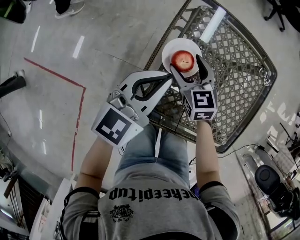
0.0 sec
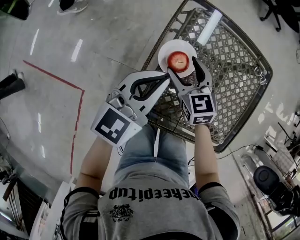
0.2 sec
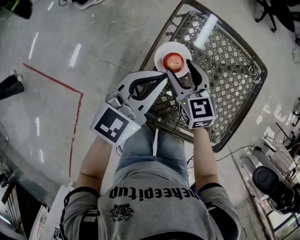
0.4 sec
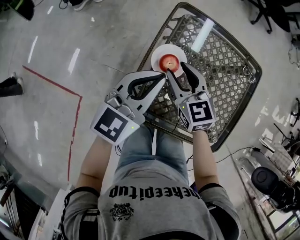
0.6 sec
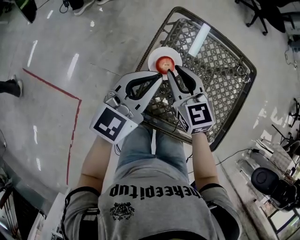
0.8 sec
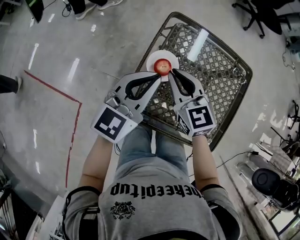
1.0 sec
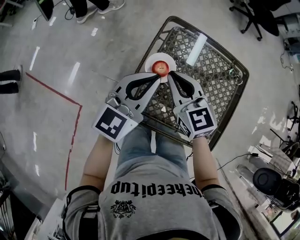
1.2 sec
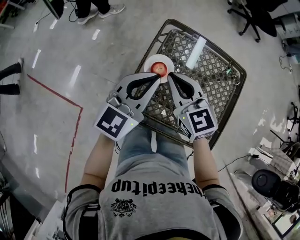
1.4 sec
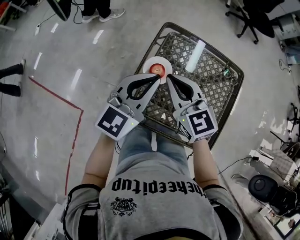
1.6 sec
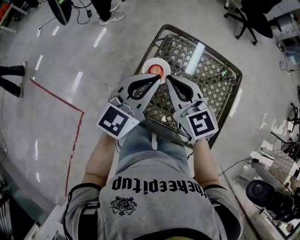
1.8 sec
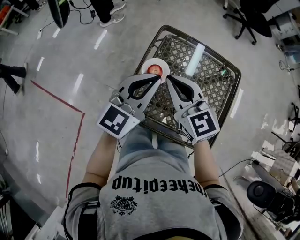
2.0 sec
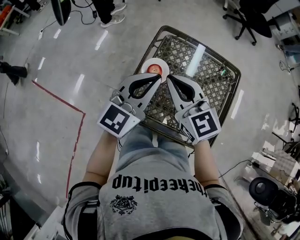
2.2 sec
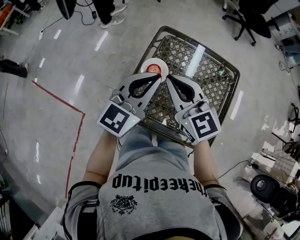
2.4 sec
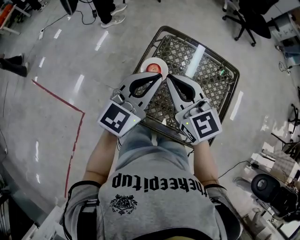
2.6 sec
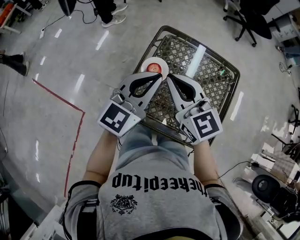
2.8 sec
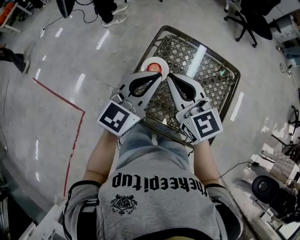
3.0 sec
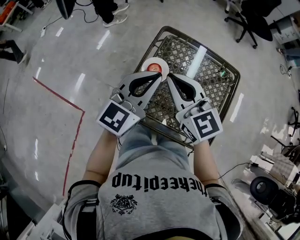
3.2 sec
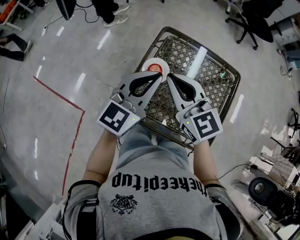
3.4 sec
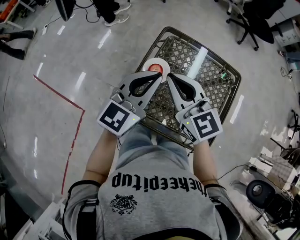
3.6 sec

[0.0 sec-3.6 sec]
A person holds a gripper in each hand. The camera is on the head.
0.0 sec to 1.8 sec: The left gripper heads upward and to the right, covering approximately 20 cm. The right gripper is displaced upward by roughly 25 cm, turns by approximately 20 degrees, and closes up.
1.8 sec to 3.6 sec: The grippers move only a little.

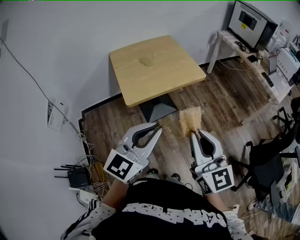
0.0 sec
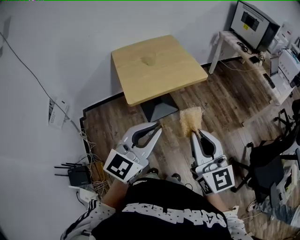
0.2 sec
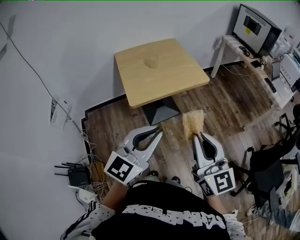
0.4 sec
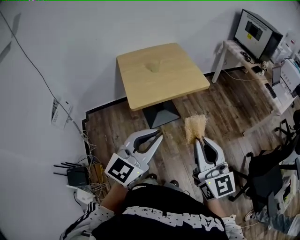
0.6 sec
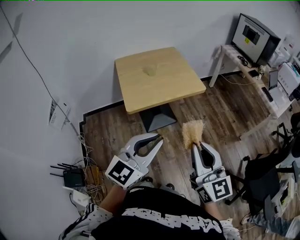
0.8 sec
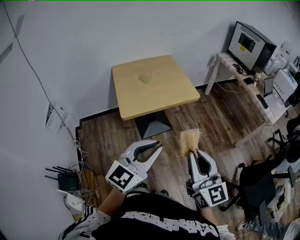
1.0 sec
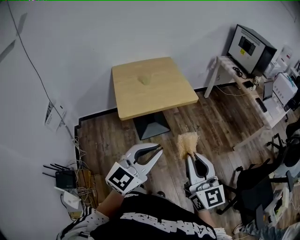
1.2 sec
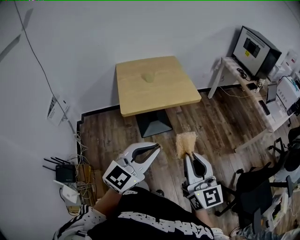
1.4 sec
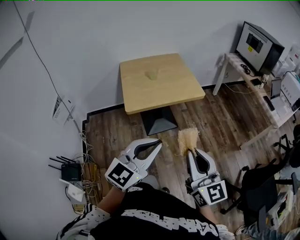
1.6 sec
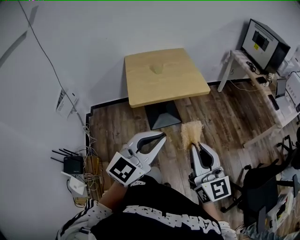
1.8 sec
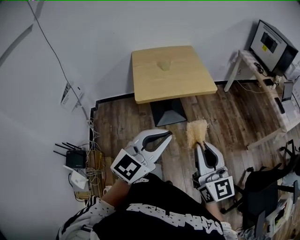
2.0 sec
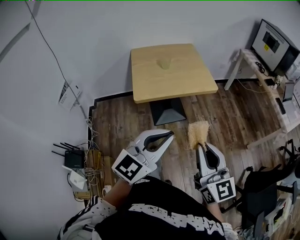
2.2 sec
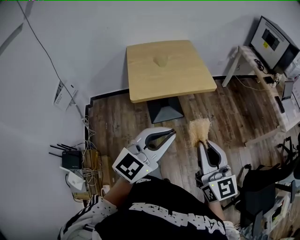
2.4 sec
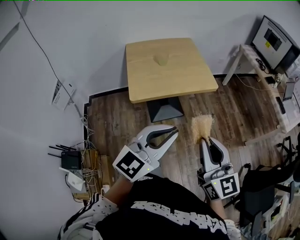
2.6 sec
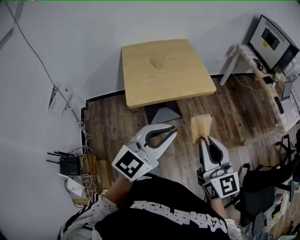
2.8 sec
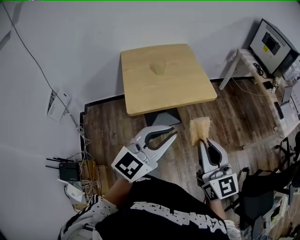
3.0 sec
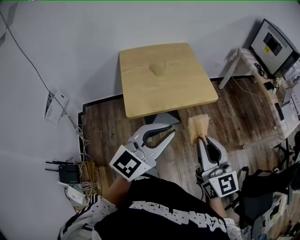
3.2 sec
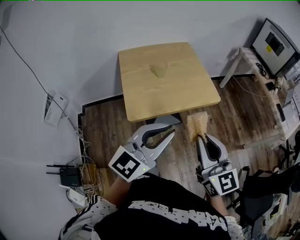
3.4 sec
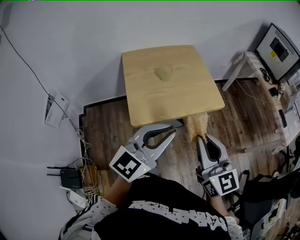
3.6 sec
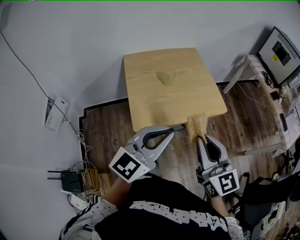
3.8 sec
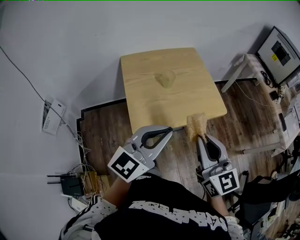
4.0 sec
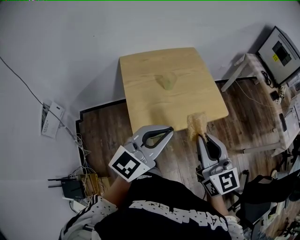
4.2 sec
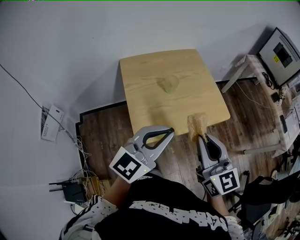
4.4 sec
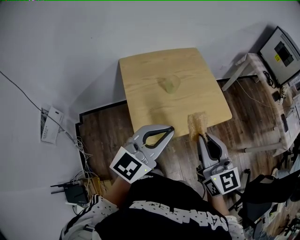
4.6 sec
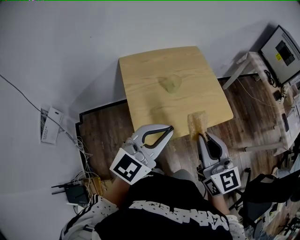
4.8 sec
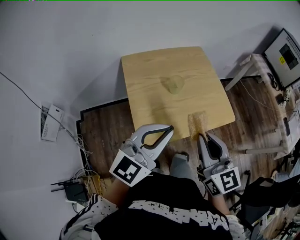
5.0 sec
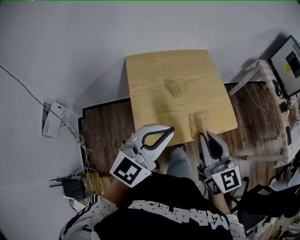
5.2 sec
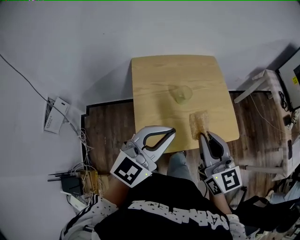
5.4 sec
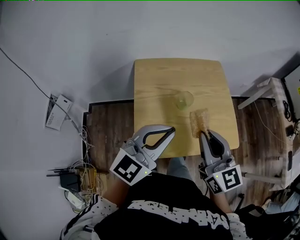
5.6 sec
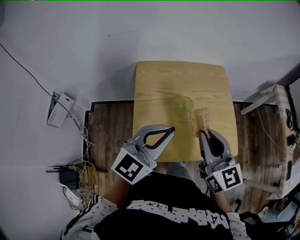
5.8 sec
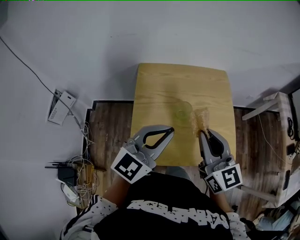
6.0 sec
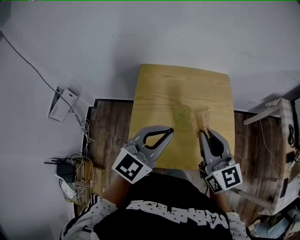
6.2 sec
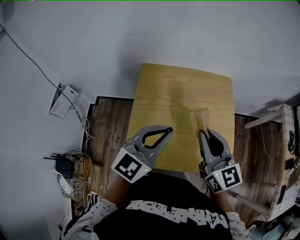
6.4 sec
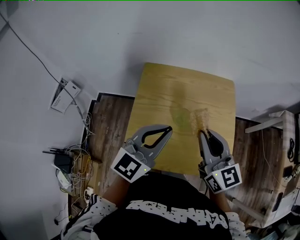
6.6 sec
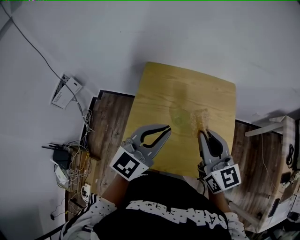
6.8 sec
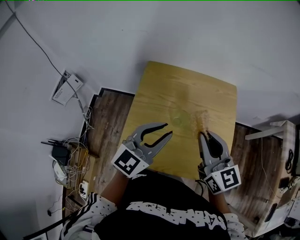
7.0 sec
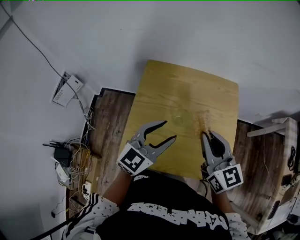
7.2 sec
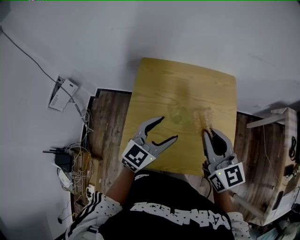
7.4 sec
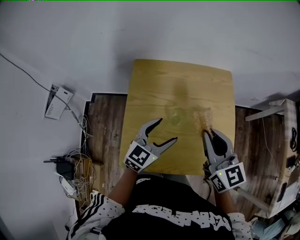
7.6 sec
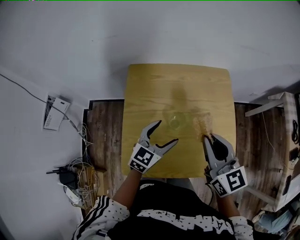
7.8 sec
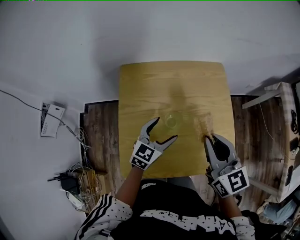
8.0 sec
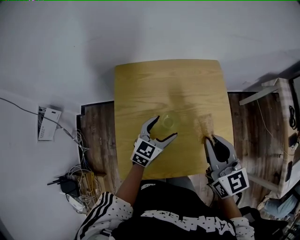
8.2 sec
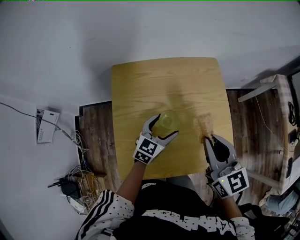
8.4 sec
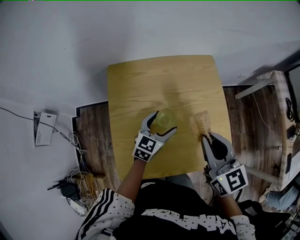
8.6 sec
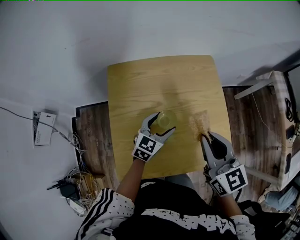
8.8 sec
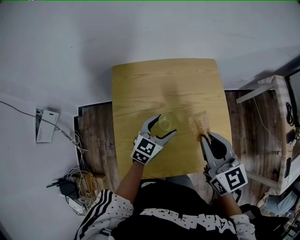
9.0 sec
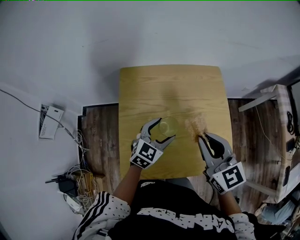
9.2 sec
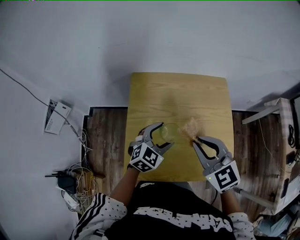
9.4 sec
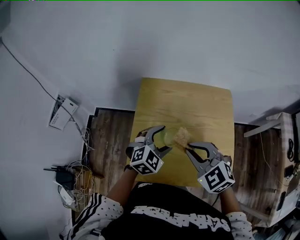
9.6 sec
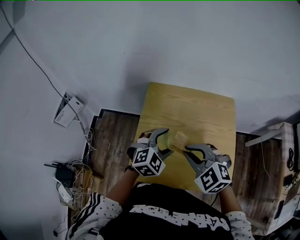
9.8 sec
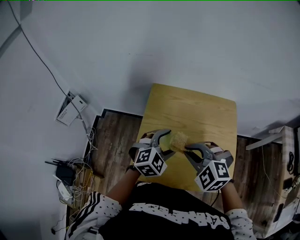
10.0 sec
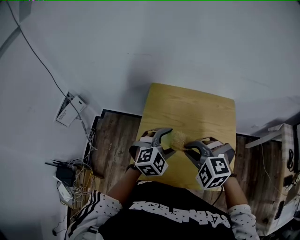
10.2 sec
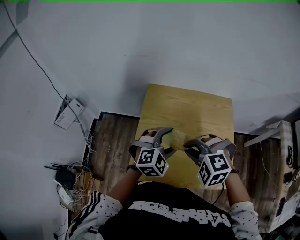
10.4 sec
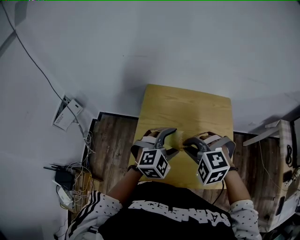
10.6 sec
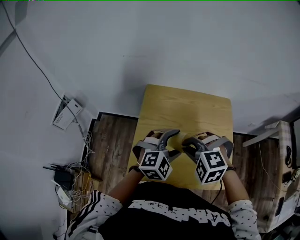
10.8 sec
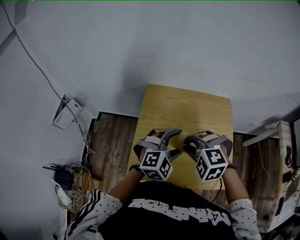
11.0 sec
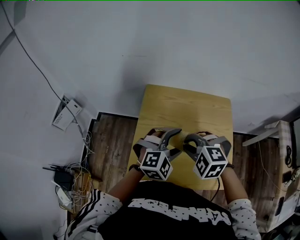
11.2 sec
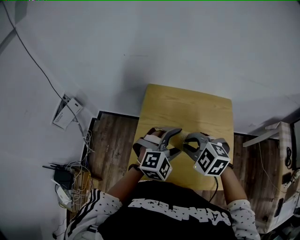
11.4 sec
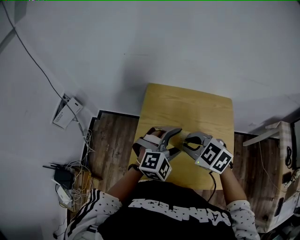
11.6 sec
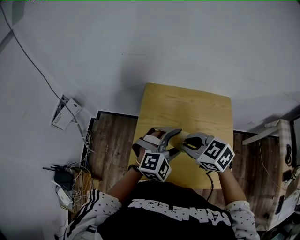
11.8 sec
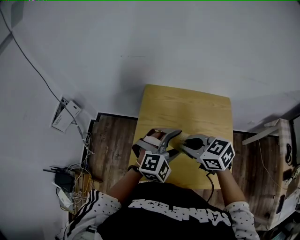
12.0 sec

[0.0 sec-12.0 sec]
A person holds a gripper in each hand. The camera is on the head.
0.0 sec to 1.6 sec: The two grippers go roughly 5 cm to the right.
1.6 sec to 3.0 sec: The two grippers go some 15 cm forward.
3.0 sec to 4.4 sec: Both grippers travel together forward and to the left, roughly 20 cm.
4.4 sec to 6.0 sec: The two grippers go some 20 cm forward.
6.0 sec to 7.6 sec: The right gripper moves forward, some 5 cm. The left gripper shifts some 15 cm downward and forward, and opens up.
7.6 sec to 9.0 sec: The left gripper goes roughly 10 cm downward.
9.0 sec to 10.4 sec: The right gripper moves to the left, some 10 cm, and twists roughly 70 degrees counterclockwise, seen from behind. The left gripper shifts some 10 cm upward and to the left, and swivels some 40 degrees.
10.4 sec to 12.0 sec: The right gripper rotates around the line of its fingers by some 60 degrees, clockwise from behind.

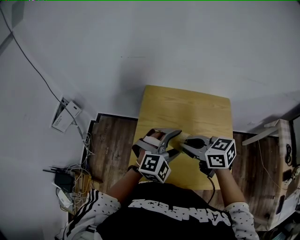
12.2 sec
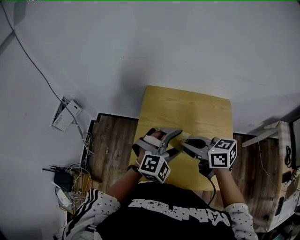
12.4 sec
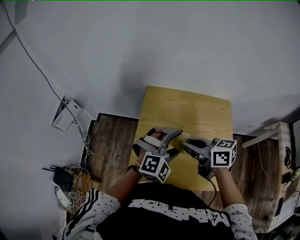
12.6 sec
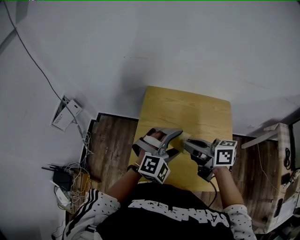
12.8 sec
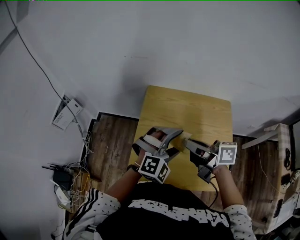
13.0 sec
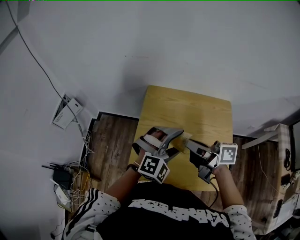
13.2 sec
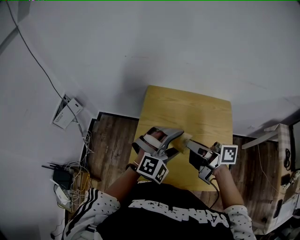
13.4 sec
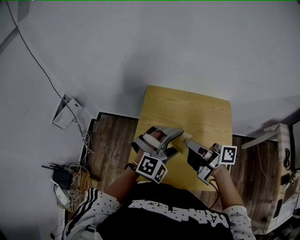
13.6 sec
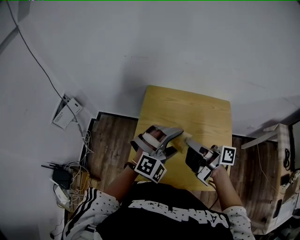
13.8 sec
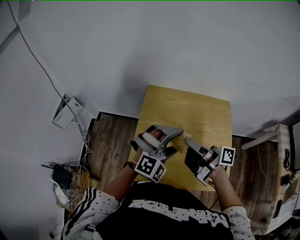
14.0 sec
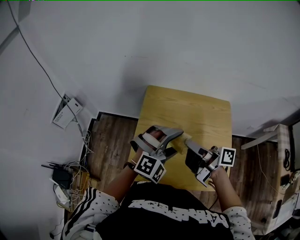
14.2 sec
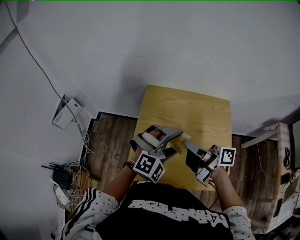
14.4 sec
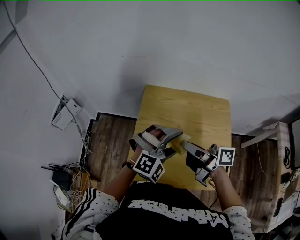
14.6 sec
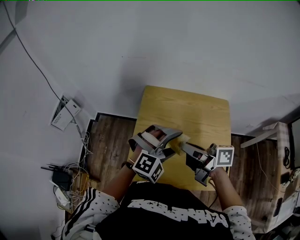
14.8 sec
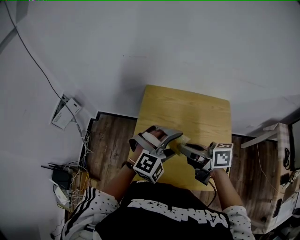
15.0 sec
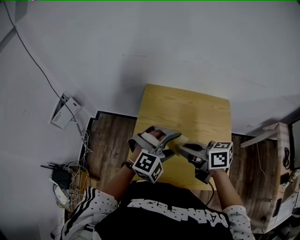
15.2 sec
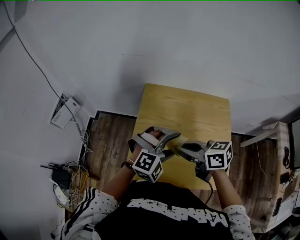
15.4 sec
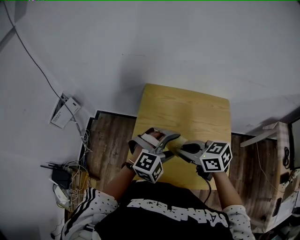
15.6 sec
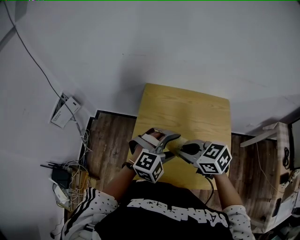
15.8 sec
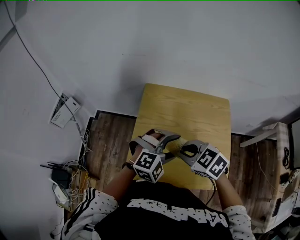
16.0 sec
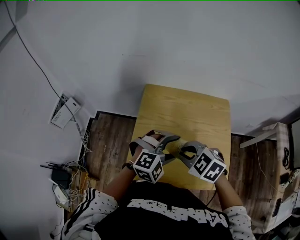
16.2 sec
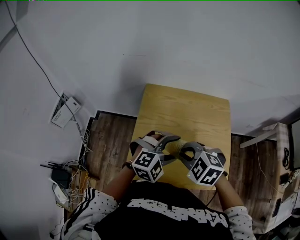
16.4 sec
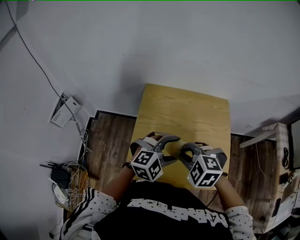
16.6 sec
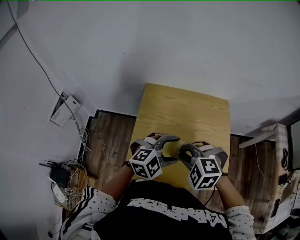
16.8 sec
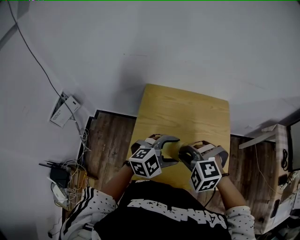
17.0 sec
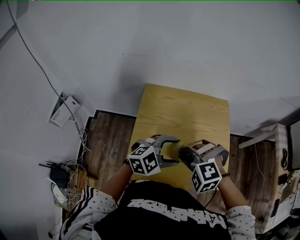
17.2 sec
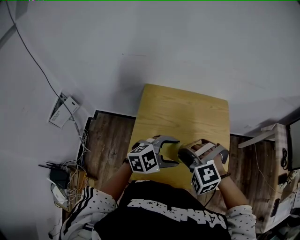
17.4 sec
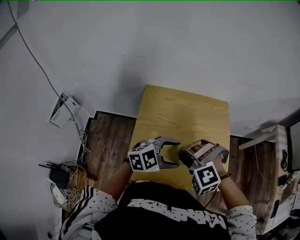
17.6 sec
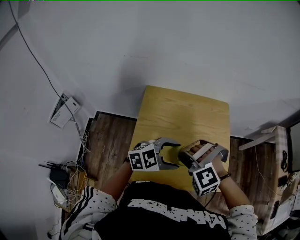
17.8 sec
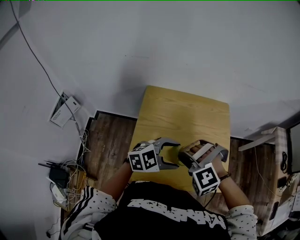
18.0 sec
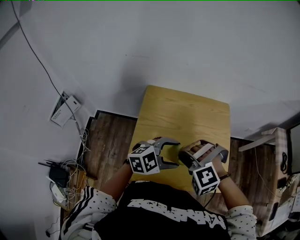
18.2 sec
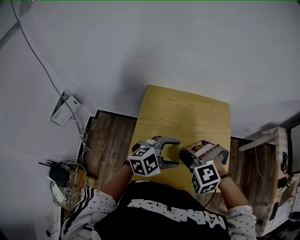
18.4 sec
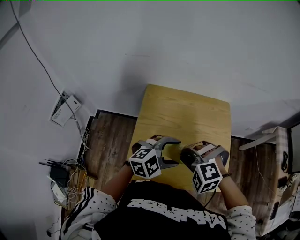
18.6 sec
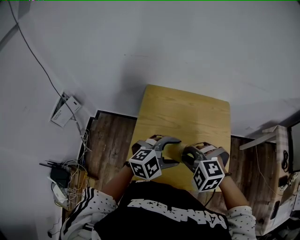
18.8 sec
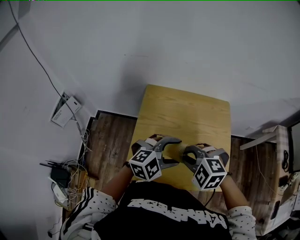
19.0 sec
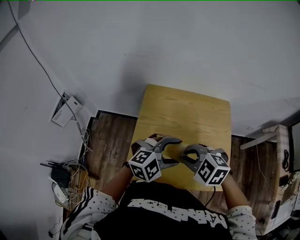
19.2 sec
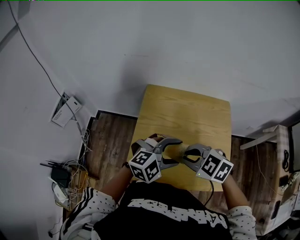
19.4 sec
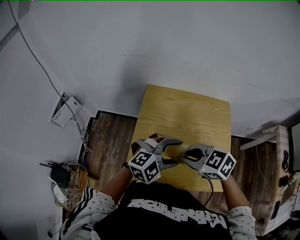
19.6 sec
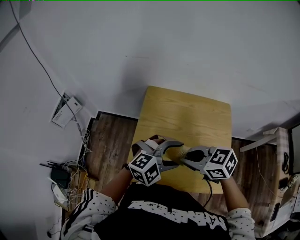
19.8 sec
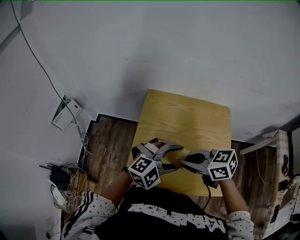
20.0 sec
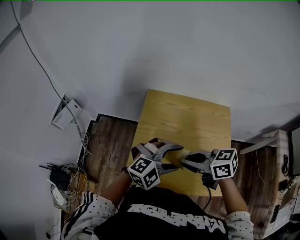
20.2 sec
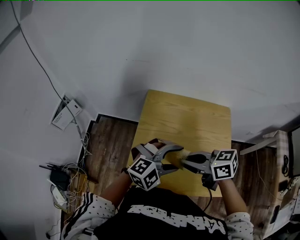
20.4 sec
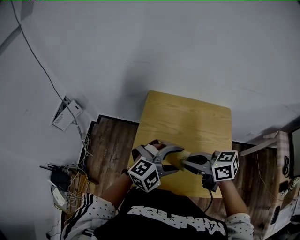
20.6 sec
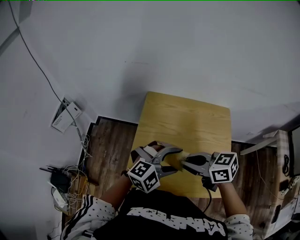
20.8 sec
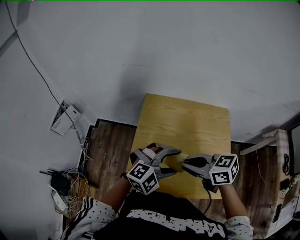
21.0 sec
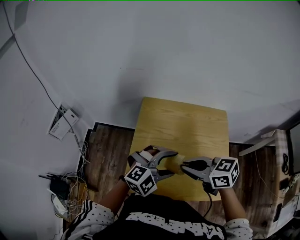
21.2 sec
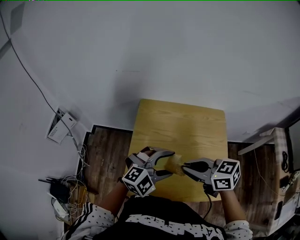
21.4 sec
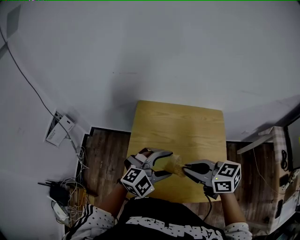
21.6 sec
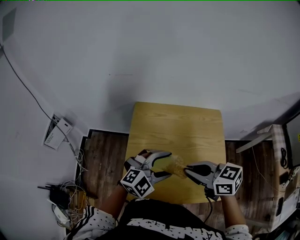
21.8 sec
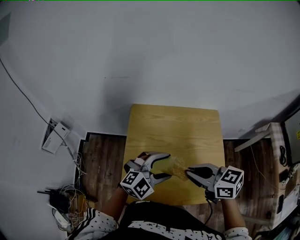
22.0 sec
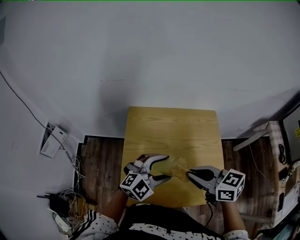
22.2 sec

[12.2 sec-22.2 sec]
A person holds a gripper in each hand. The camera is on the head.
12.2 sec to 13.6 sec: The right gripper tilts its fingers roughly 30 degrees upward.
13.6 sec to 15.0 sec: The grippers move only a little.
15.0 sec to 16.4 sec: The right gripper ends up about 5 cm from where it was, and angles its fingers downward, by some 50 degrees.
16.4 sec to 18.0 sec: The left gripper turns by roughly 30 degrees. The right gripper rolls counterclockwise, seen from behind, by approximately 50 degrees.
18.0 sec to 19.4 sec: The left gripper turns by approximately 20 degrees, while the right gripper twists roughly 50 degrees clockwise, seen from behind.
19.4 sec to 20.8 sec: The right gripper changes its angle by about 40 degrees.
20.8 sec to 22.2 sec: The right gripper ends up about 5 cm from where it was.
